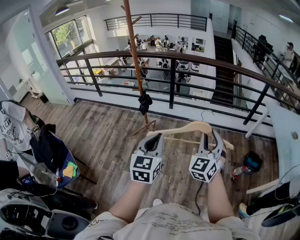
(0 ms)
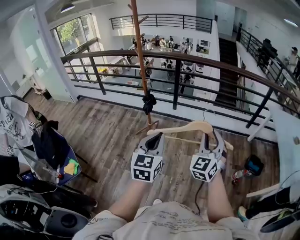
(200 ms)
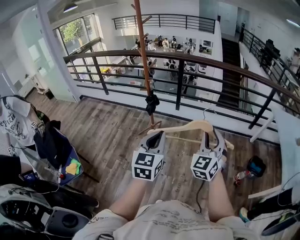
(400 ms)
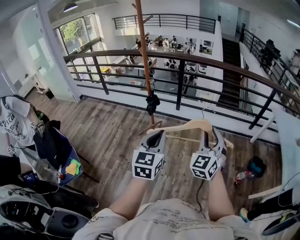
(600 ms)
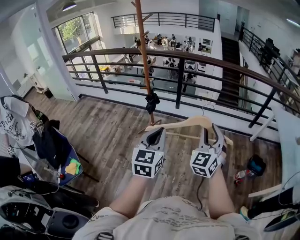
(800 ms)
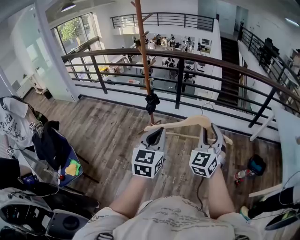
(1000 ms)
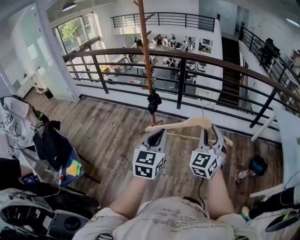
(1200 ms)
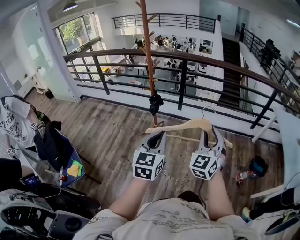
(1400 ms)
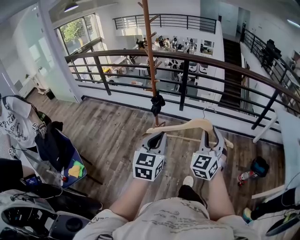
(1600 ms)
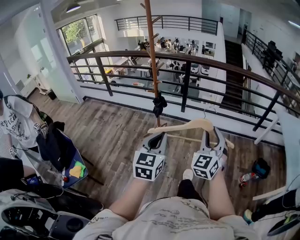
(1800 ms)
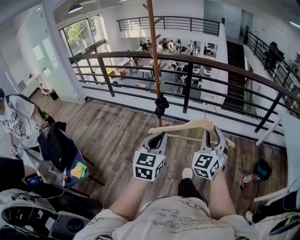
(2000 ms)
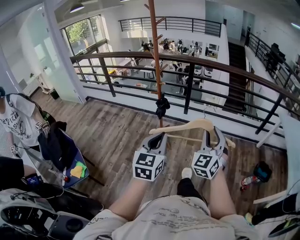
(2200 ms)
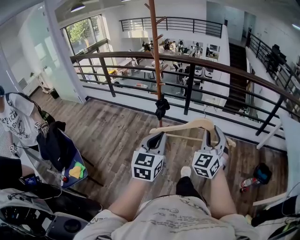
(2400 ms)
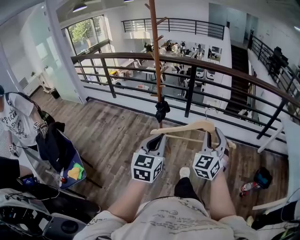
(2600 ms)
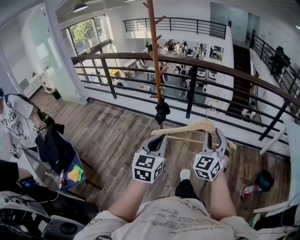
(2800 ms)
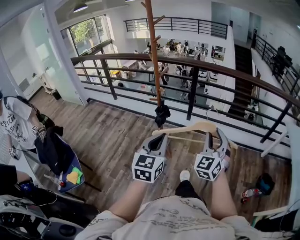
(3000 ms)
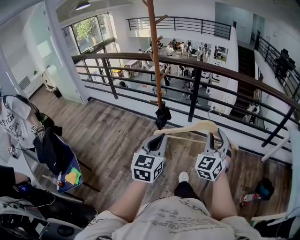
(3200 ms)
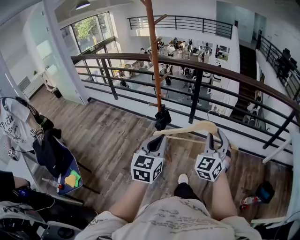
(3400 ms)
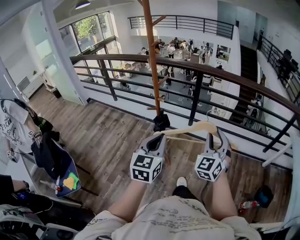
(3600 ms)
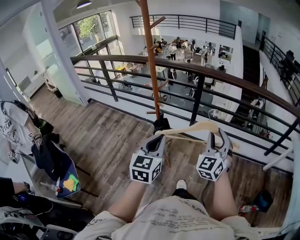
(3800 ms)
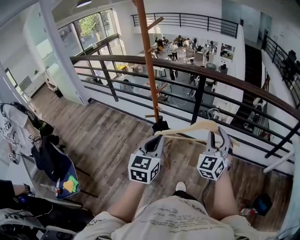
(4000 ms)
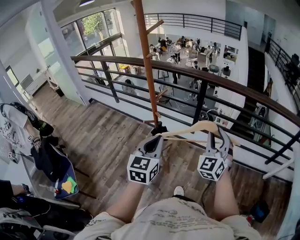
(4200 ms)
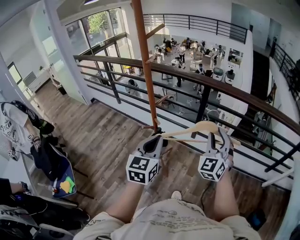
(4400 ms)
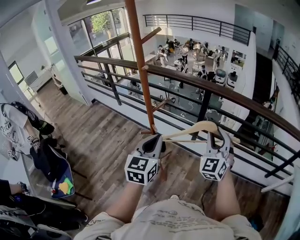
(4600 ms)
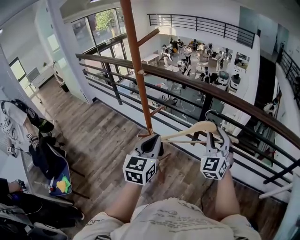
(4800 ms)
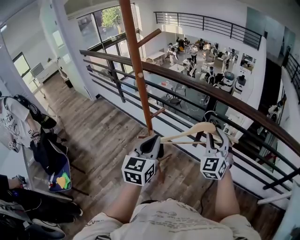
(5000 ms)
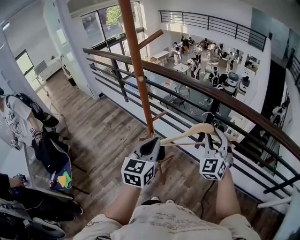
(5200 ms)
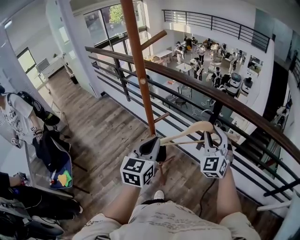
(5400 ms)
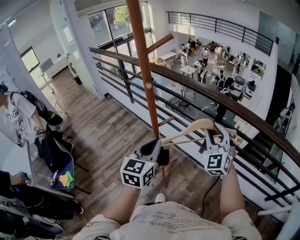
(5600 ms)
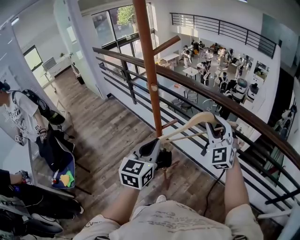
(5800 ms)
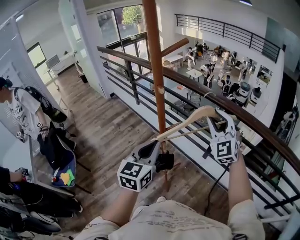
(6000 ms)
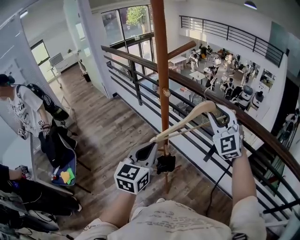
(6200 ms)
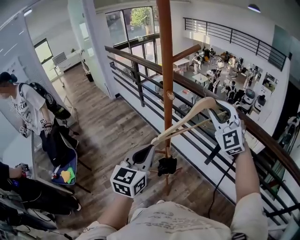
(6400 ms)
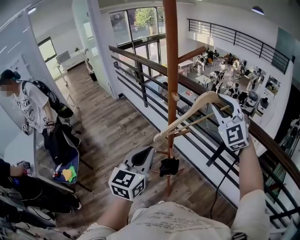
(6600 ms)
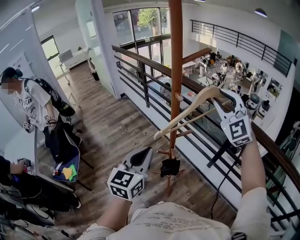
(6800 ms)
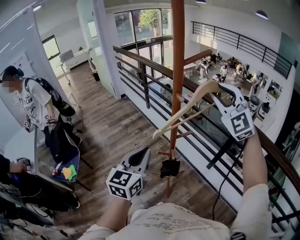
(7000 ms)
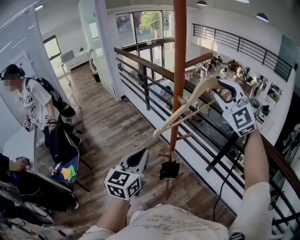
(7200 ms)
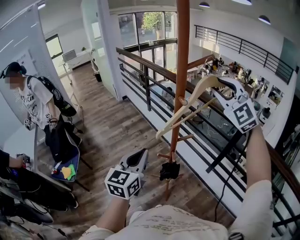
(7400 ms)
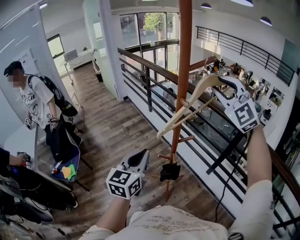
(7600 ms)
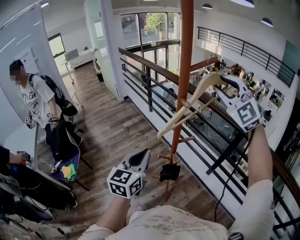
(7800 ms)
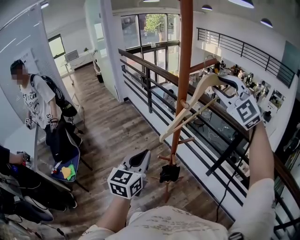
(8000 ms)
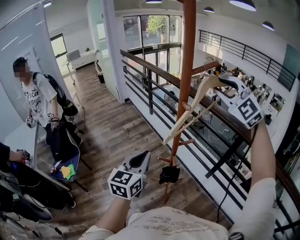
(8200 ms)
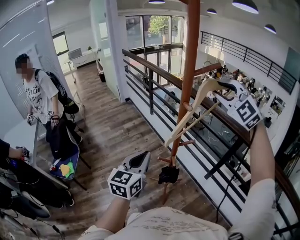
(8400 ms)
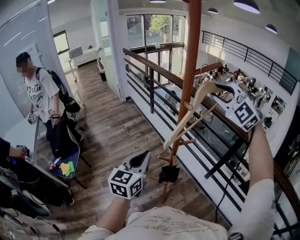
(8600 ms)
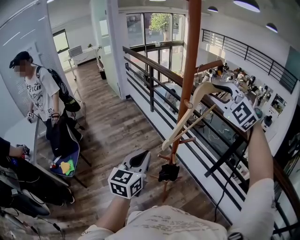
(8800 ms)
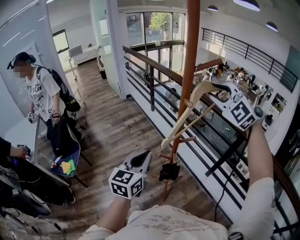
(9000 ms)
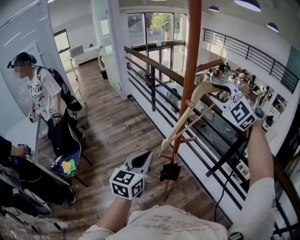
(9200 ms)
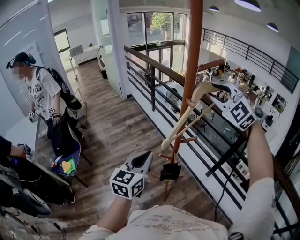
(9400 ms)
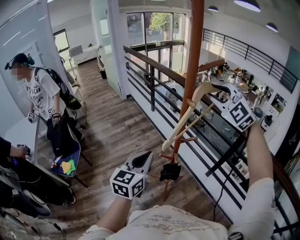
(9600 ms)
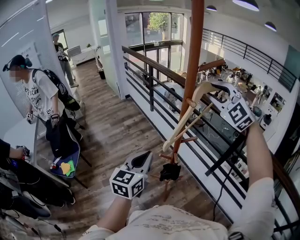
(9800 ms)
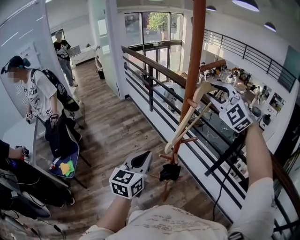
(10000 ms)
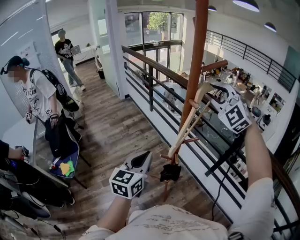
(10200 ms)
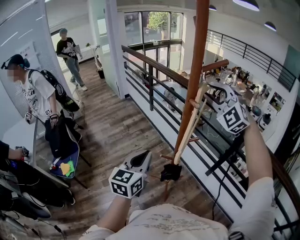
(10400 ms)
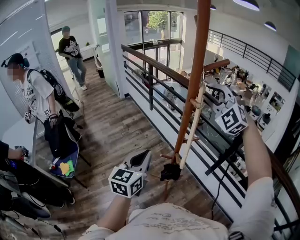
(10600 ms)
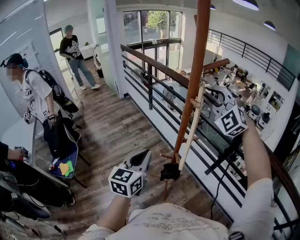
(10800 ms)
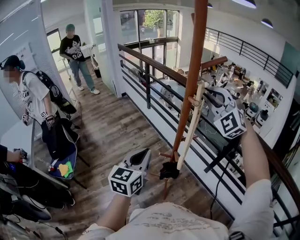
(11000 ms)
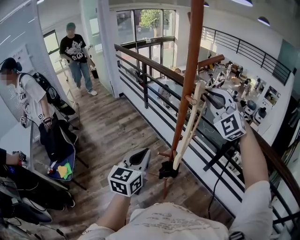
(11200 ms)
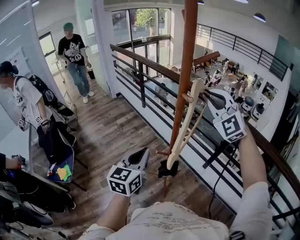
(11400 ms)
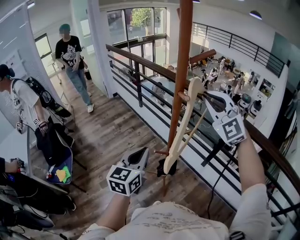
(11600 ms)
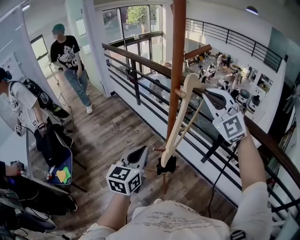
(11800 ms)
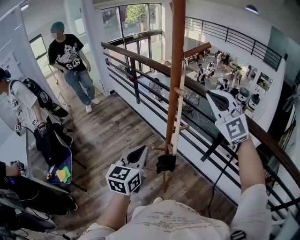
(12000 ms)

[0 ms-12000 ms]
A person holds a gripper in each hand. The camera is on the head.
0 ms to 1600 ms: Both grippers move to the left, roughly 10 cm.
1600 ms to 3000 ms: The two grippers go approximately 15 cm forward.
3000 ms to 4400 ms: Both grippers travel together forward, approximately 30 cm.
4400 ms to 6000 ms: The right gripper moves forward and to the left, roughly 25 cm, and changes its angle by some 40 degrees. Meanwhile the left gripper shifts about 15 cm forward.
6000 ms to 7600 ms: The right gripper shifts some 20 cm upward, to the left and forward, and turns by roughly 30 degrees, while the left gripper goes some 10 cm to the left.
7600 ms to 9000 ms: The grippers make only small movements.
9000 ms to 10400 ms: The grippers move only a little.
10400 ms to 12000 ms: The right gripper moves backward, roughly 5 cm, swivels roughly 20 degrees, and closes its fingers.

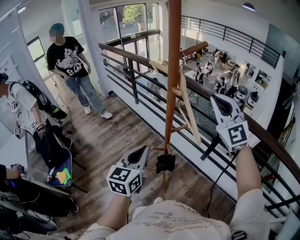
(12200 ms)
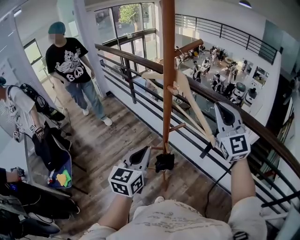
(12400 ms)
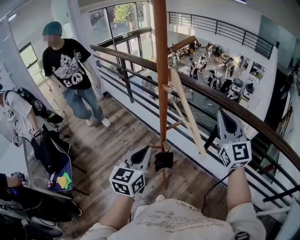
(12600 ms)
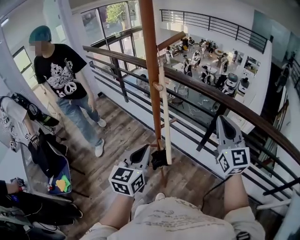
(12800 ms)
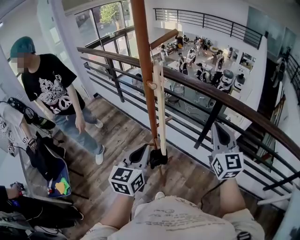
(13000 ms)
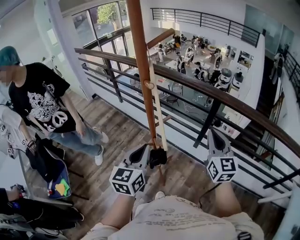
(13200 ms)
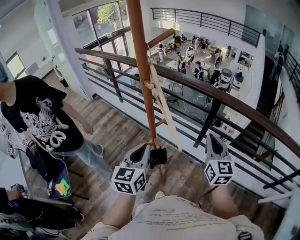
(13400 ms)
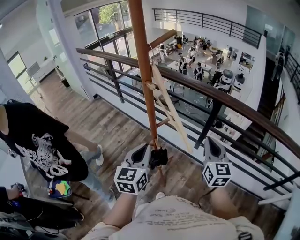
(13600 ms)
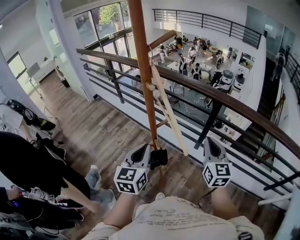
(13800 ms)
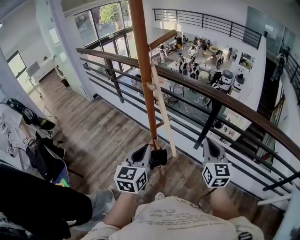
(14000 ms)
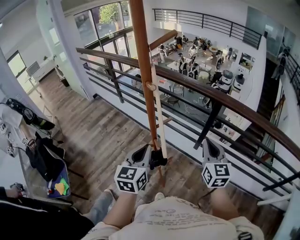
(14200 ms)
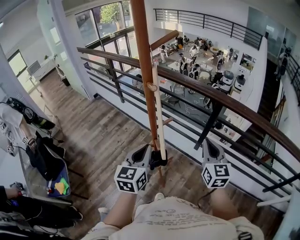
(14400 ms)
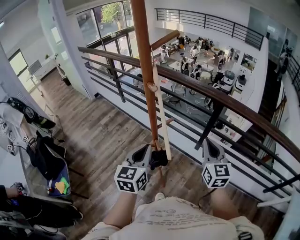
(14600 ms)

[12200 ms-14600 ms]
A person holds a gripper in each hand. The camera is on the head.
12200 ms to 13400 ms: The right gripper shifts approximately 25 cm downward, to the right and backward, and rotates some 50 degrees, while the left gripper heads to the right, covering approximately 5 cm.
13400 ms to 14600 ms: There are only small adjustments of the grippers.

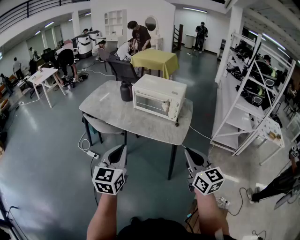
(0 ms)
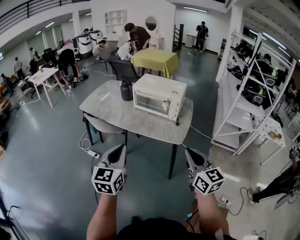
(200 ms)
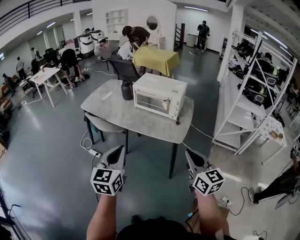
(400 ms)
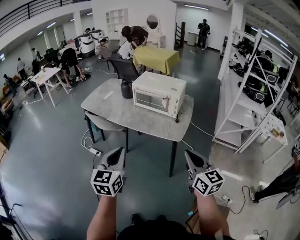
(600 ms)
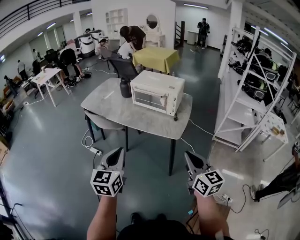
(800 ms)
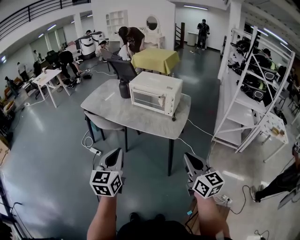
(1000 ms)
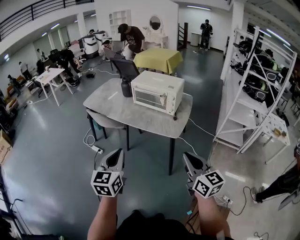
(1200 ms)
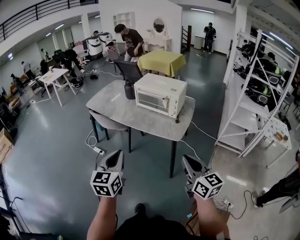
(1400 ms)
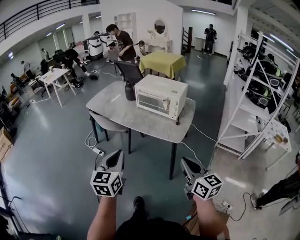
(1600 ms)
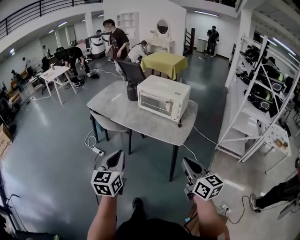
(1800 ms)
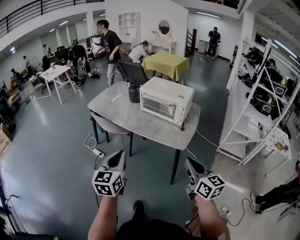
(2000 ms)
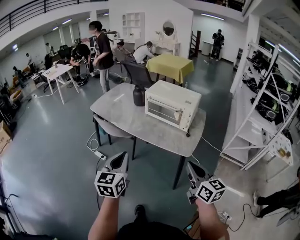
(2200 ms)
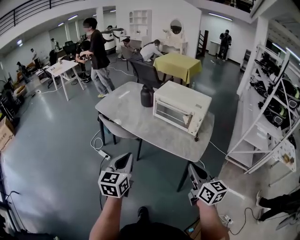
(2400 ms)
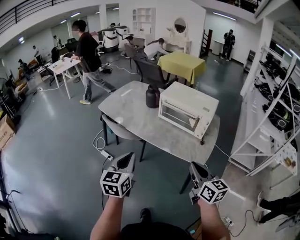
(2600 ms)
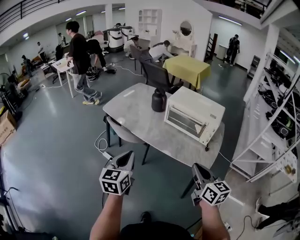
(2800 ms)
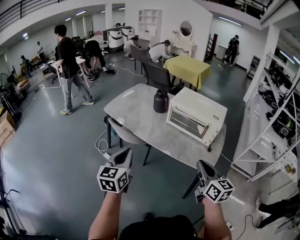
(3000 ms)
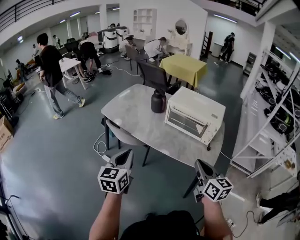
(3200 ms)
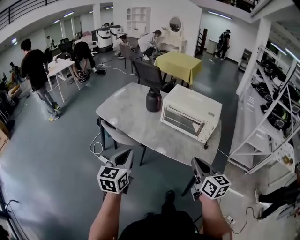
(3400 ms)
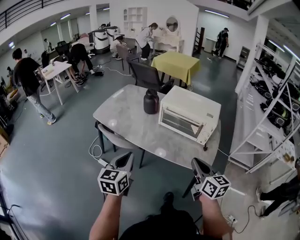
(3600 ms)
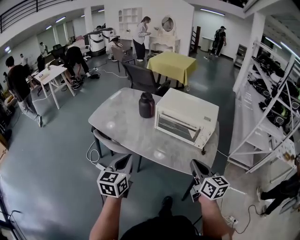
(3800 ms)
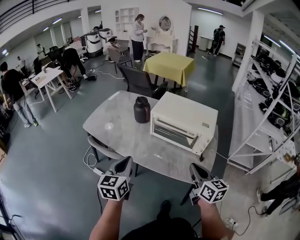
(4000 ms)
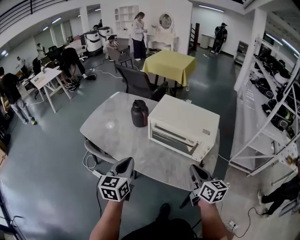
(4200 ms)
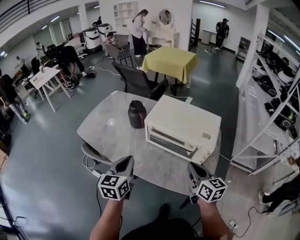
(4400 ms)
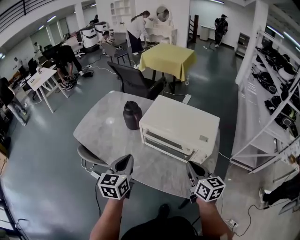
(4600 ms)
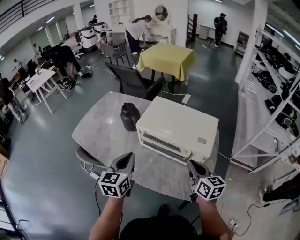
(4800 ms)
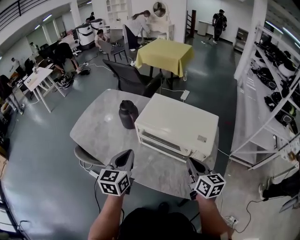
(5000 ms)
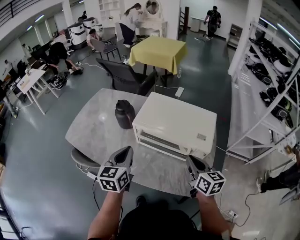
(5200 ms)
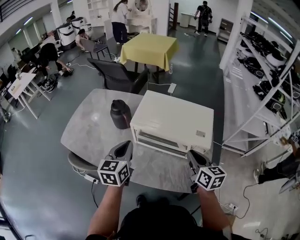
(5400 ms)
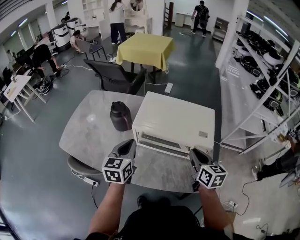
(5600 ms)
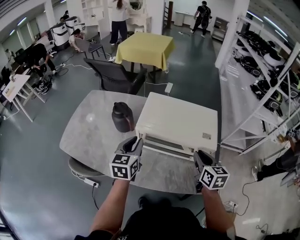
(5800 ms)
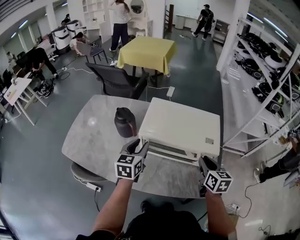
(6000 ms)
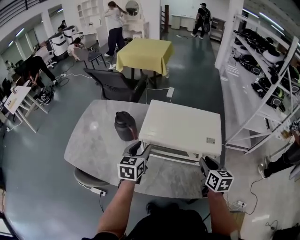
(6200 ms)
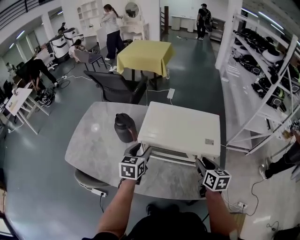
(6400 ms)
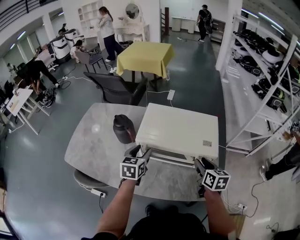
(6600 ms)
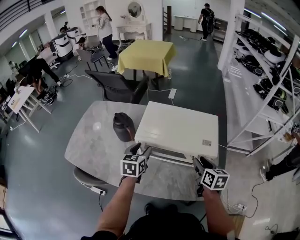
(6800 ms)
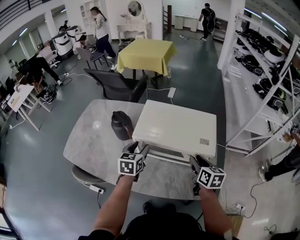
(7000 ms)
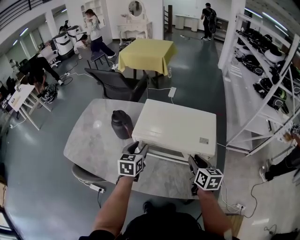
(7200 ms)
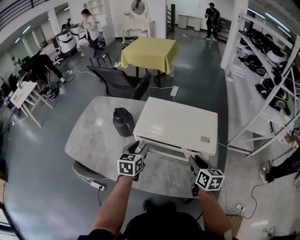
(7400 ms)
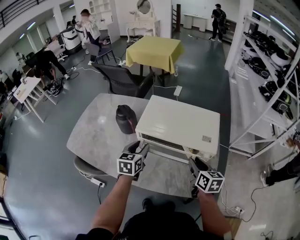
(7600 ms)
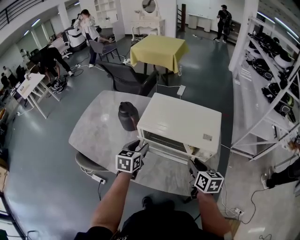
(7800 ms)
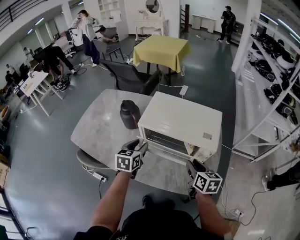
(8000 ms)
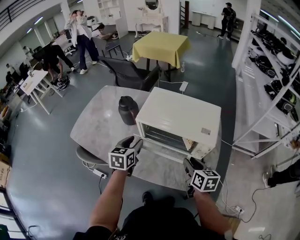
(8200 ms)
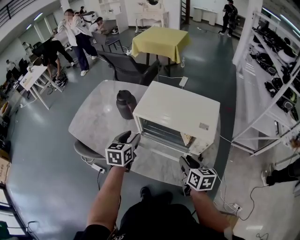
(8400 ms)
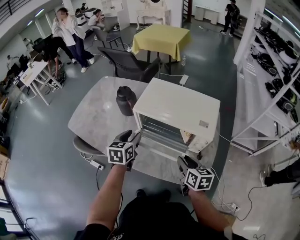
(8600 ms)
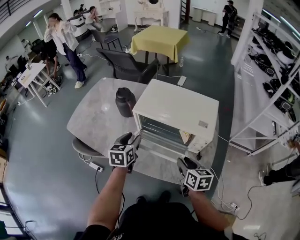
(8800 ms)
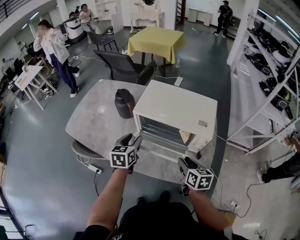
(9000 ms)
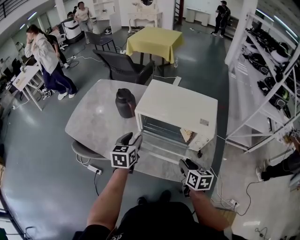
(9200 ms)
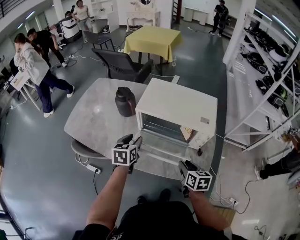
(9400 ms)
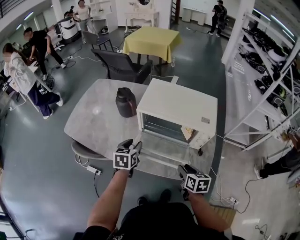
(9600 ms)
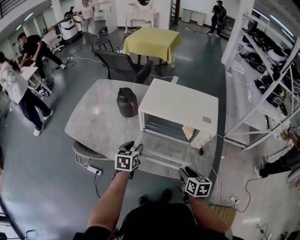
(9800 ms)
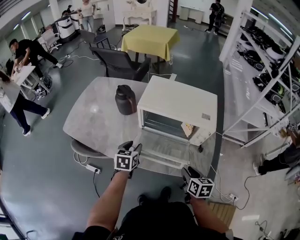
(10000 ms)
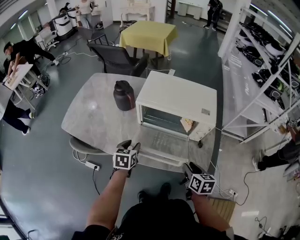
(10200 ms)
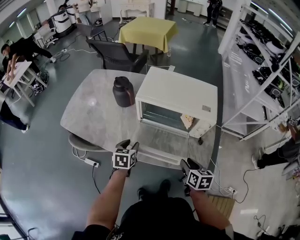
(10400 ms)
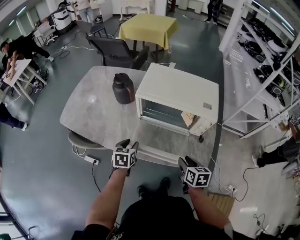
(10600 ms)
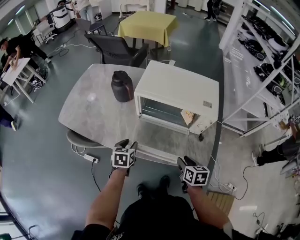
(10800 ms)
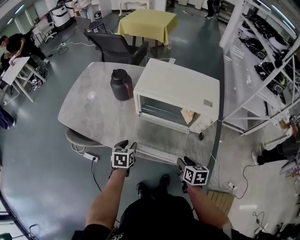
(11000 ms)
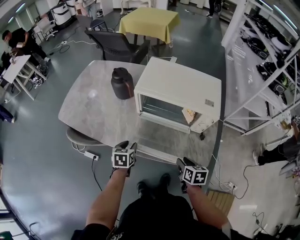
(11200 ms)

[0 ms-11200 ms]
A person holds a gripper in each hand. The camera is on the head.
0 ms to 1600 ms: The grippers both shift backward by about 5 cm.
1600 ms to 3200 ms: Both grippers travel together forward and to the left, approximately 30 cm.
3200 ms to 4800 ms: Both grippers travel together forward and to the right, some 30 cm.
4800 ms to 6400 ms: The right gripper shifts some 5 cm downward, rotates roughly 20 degrees, and opens its fingers; the left gripper heads forward and downward, covering roughly 15 cm, and opens.
6400 ms to 8000 ms: The left gripper shifts by approximately 5 cm.
8000 ms to 9600 ms: The left gripper goes about 5 cm backward; the right gripper goes some 10 cm backward and downward.
9600 ms to 11200 ms: The right gripper is displaced downward by some 5 cm. Meanwhile the left gripper heads downward and backward, covering approximately 10 cm.
